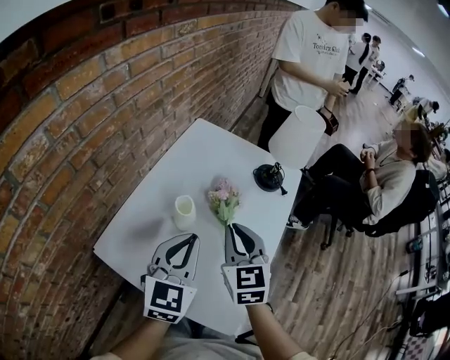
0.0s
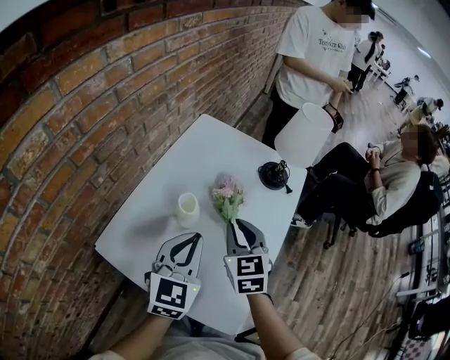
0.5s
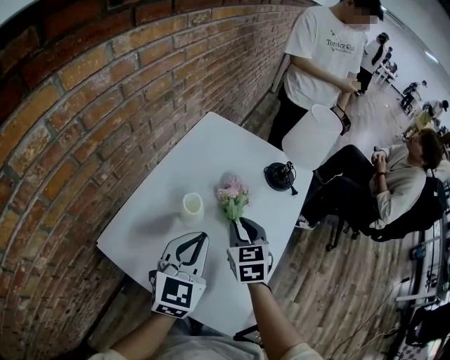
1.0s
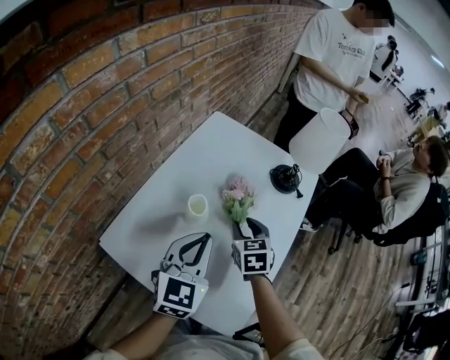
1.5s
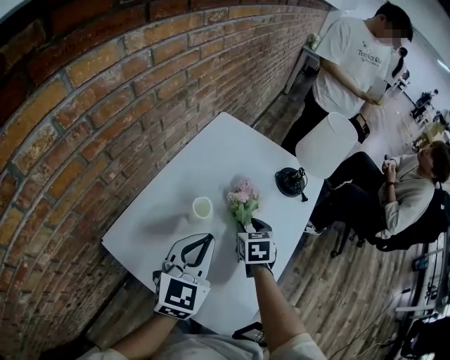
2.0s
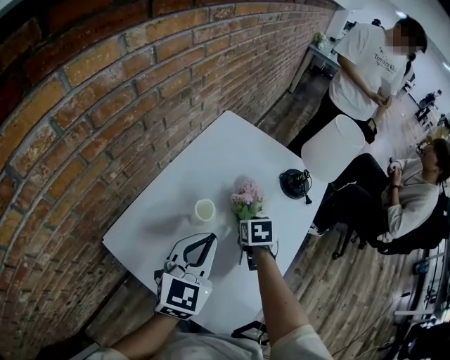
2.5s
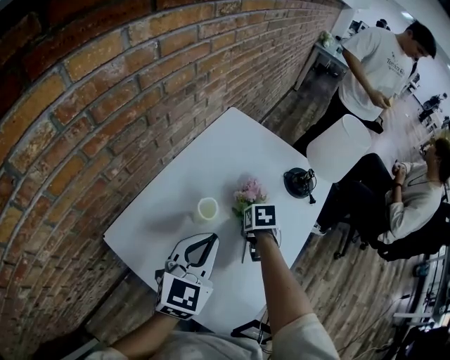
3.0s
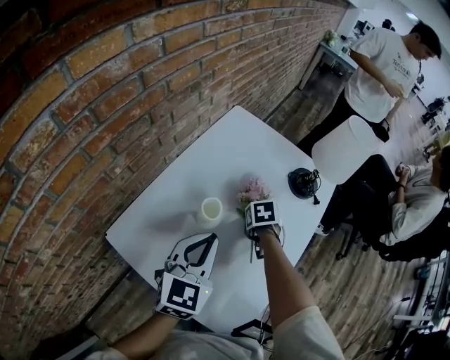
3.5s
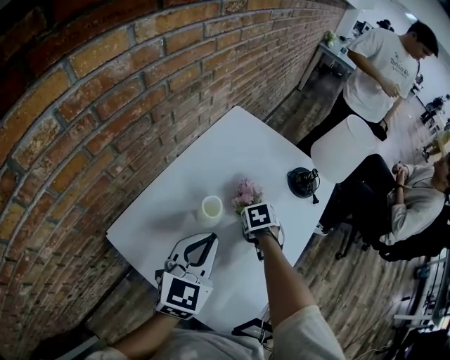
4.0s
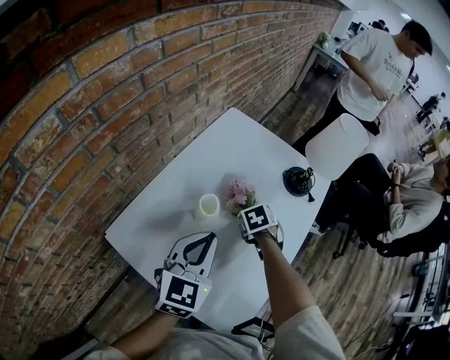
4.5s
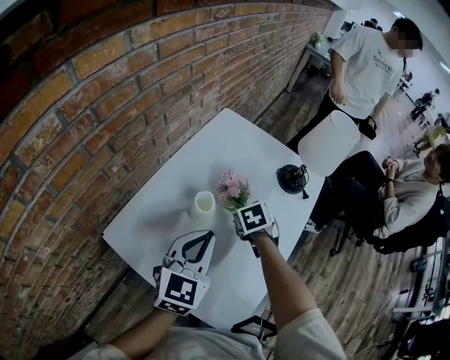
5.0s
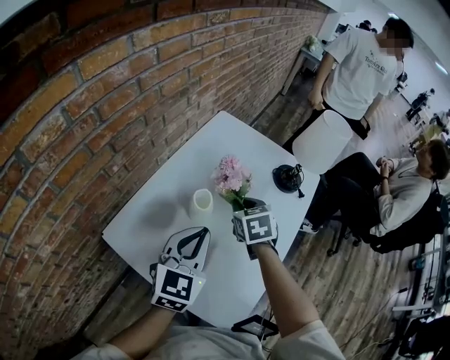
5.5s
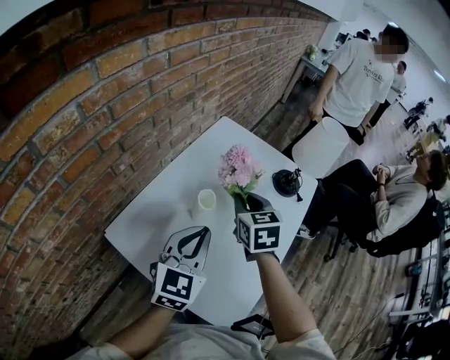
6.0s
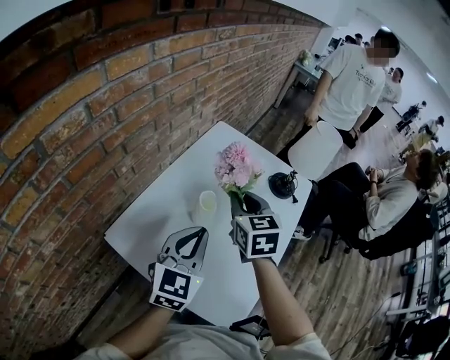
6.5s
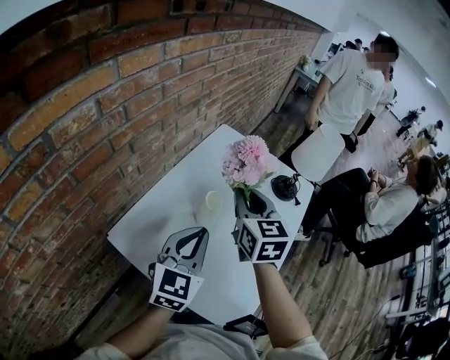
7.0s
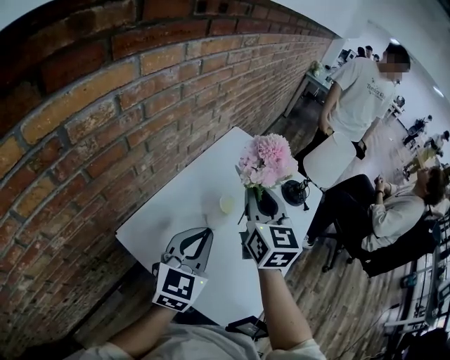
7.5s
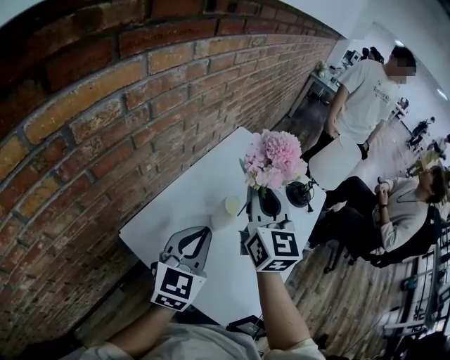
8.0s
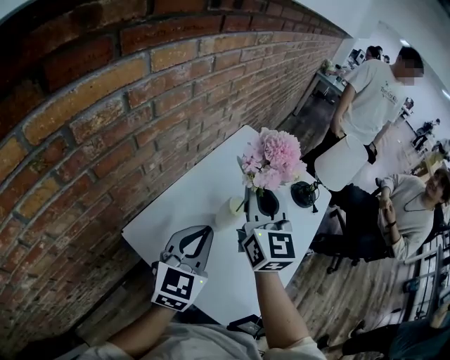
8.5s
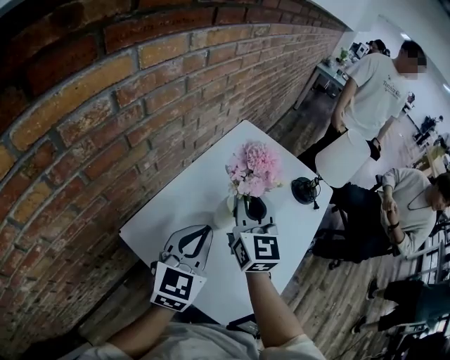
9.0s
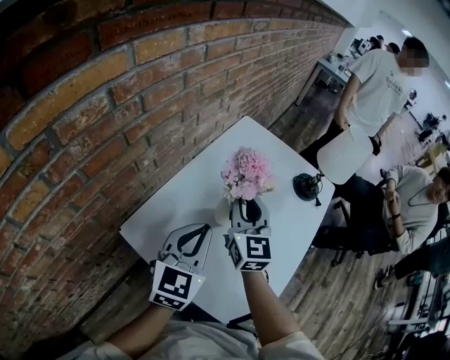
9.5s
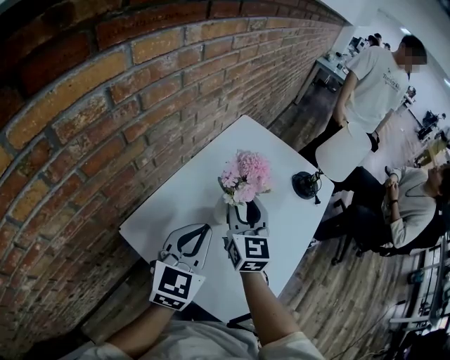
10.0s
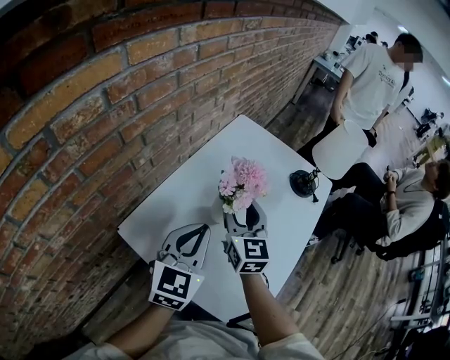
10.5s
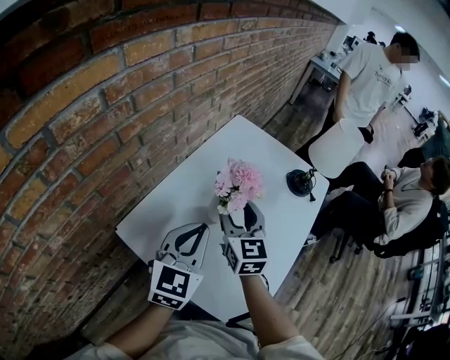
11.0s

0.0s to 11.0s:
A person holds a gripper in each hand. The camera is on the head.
0.0s to 2.0s: The right gripper heads downward and forward, covering roughly 20 cm, swivels roughly 30 degrees, and opens.
2.0s to 3.5s: The right gripper is displaced downward by some 5 cm, and swivels some 30 degrees.
3.5s to 5.5s: The right gripper shifts some 15 cm upward, rotates about 30 degrees, and closes.
5.5s to 7.5s: The right gripper is displaced upward by roughly 20 cm, and tilts its fingers roughly 40 degrees upward. The left gripper is displaced to the left by about 5 cm.
7.5s to 9.0s: The right gripper changes place by roughly 5 cm.
9.0s to 11.0s: The right gripper heads downward, covering approximately 10 cm, and opens.

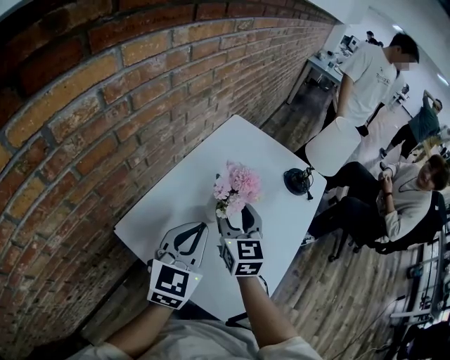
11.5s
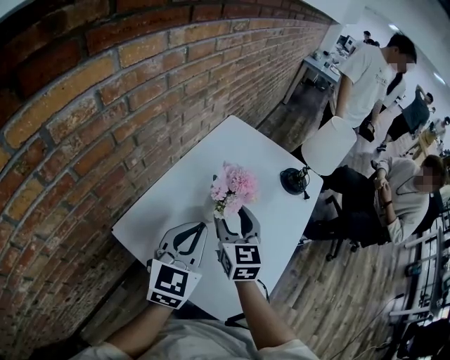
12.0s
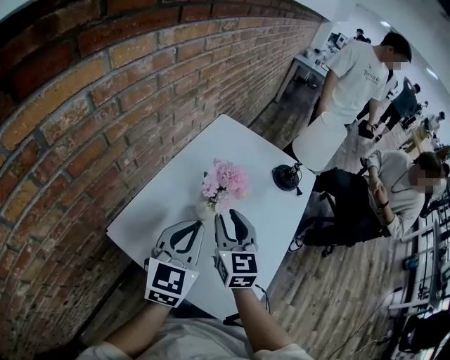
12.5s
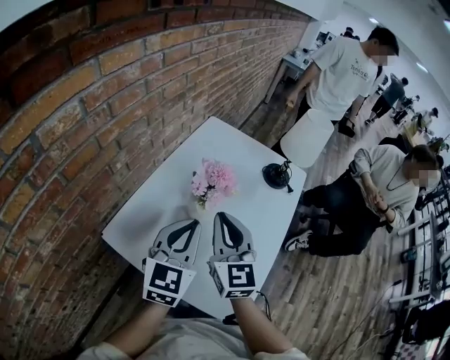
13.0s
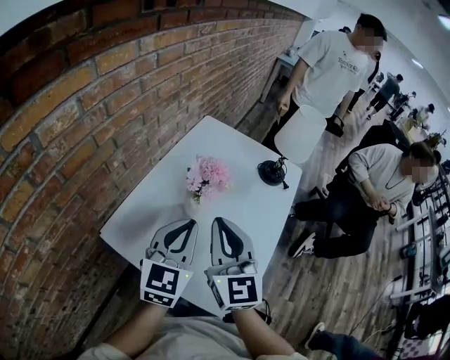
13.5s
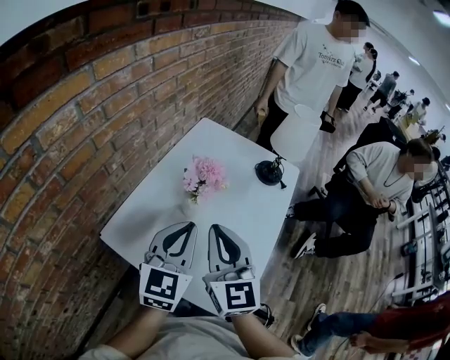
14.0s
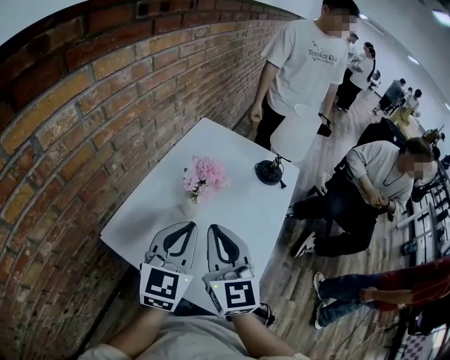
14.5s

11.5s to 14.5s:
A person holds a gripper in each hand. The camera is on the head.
11.5s to 13.0s: The right gripper travels backward and upward by some 10 cm, and closes its fingers.
13.0s to 14.5s: The right gripper is displaced backward by approximately 5 cm.

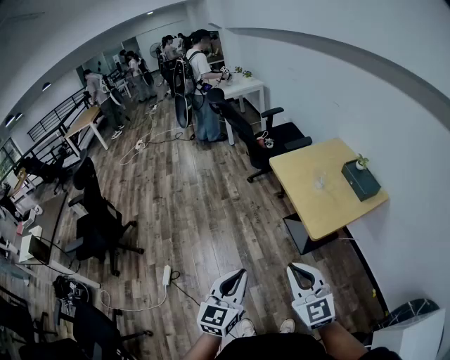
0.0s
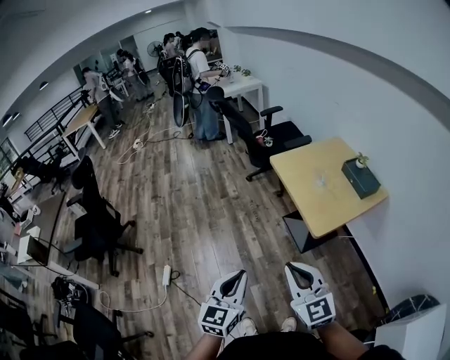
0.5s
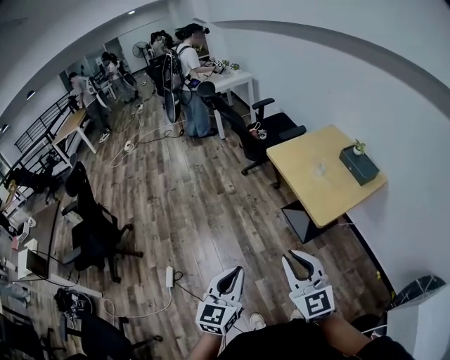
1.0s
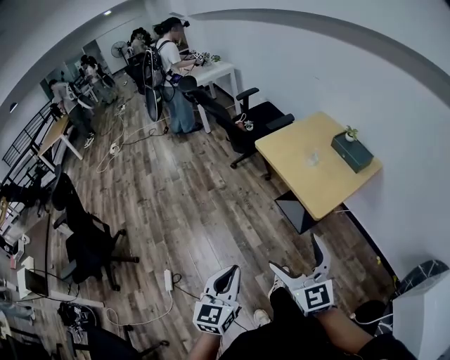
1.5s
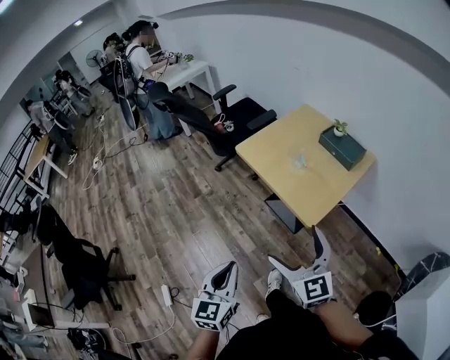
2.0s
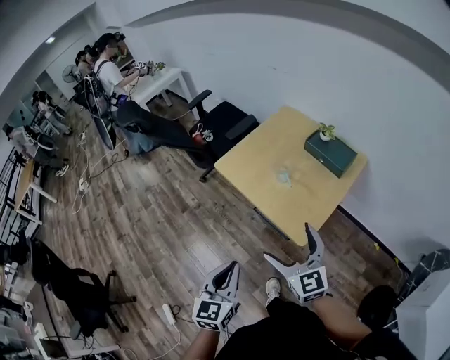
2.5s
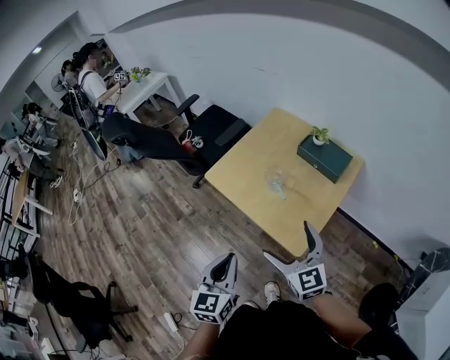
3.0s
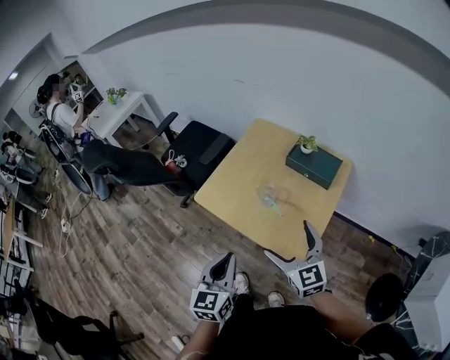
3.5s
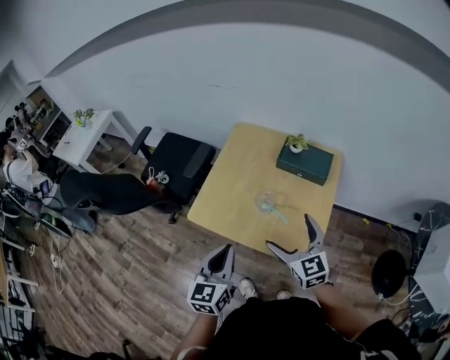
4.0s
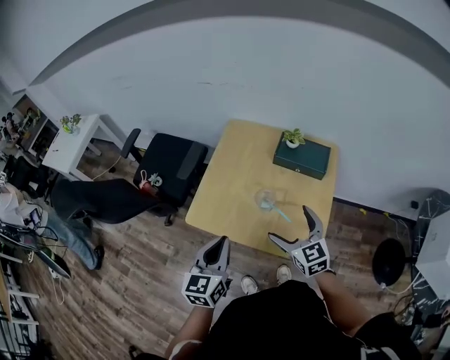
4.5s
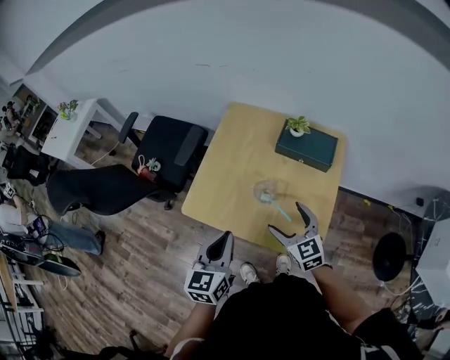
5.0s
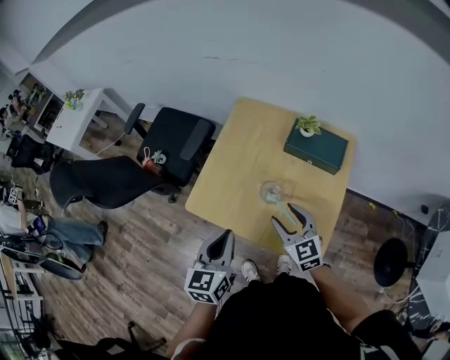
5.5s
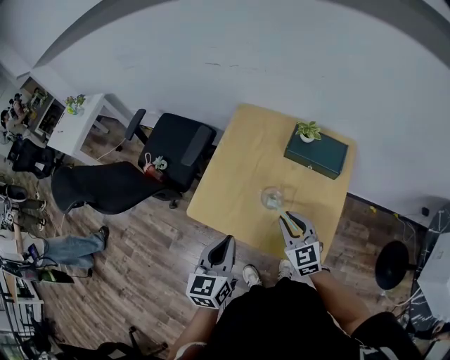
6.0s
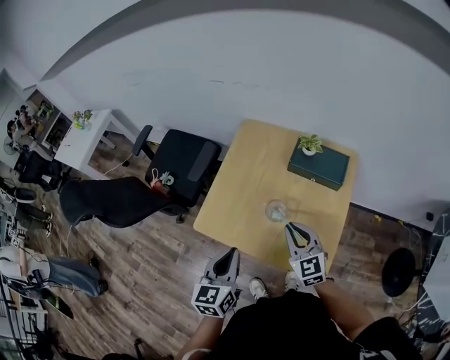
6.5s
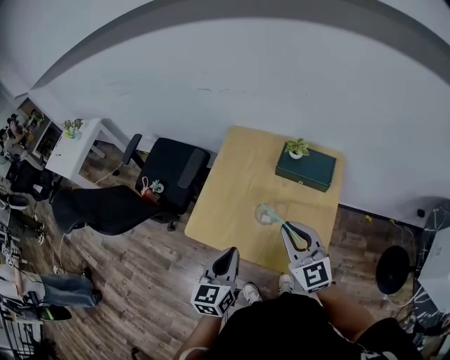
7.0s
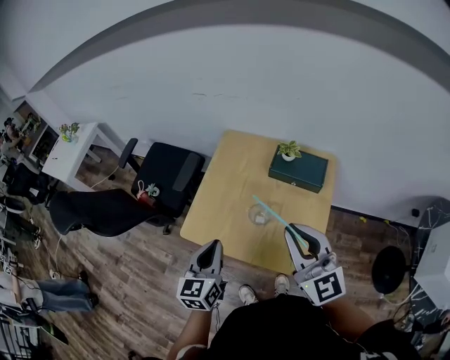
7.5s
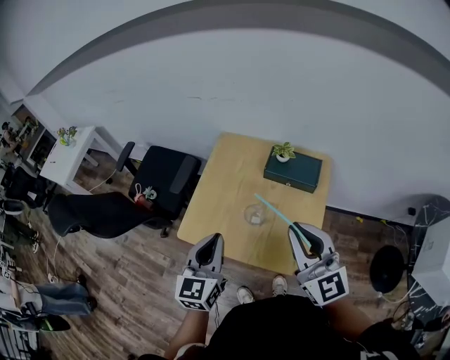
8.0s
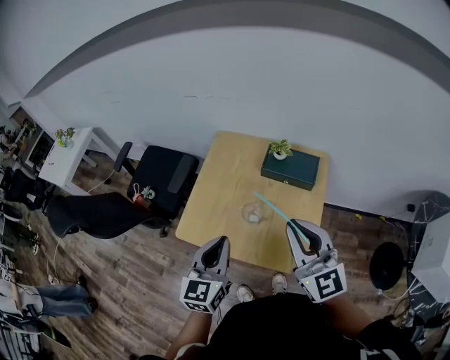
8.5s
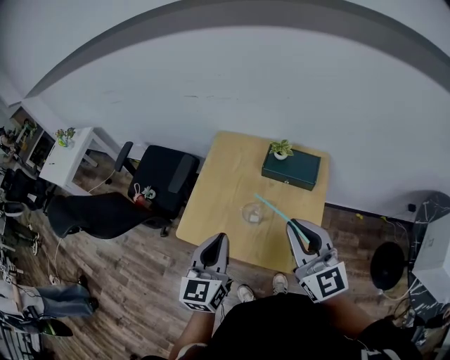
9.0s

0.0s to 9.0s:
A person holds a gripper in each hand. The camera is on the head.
0.0s to 2.0s: The left gripper moves forward and downward, some 15 cm. Meanwhile the right gripper travels forward by roughly 15 cm, rotates about 20 degrees, and opens.
2.0s to 4.5s: The left gripper changes place by some 50 cm, and swivels about 30 degrees, while the right gripper shifts by roughly 40 cm, and rotates approximately 30 degrees.
4.5s to 7.0s: The right gripper is displaced upward by some 5 cm, and closes its fingers; the left gripper moves approximately 5 cm.
7.0s to 9.0s: Both grippers travel together upward, approximately 10 cm.

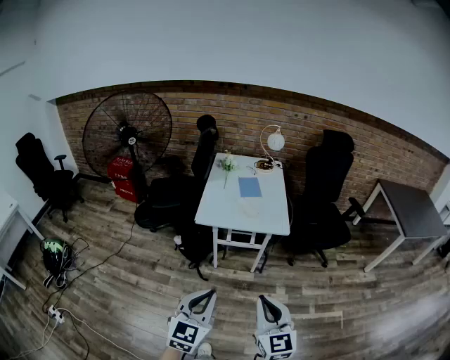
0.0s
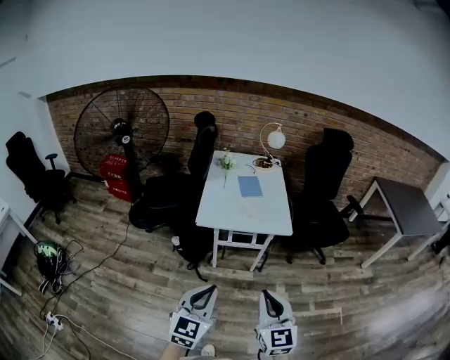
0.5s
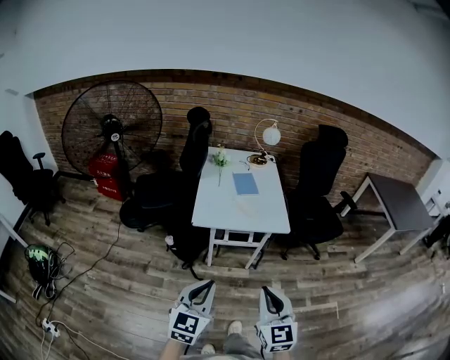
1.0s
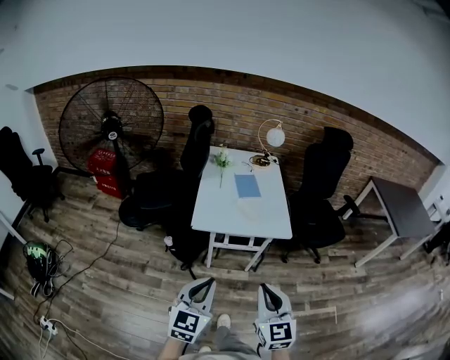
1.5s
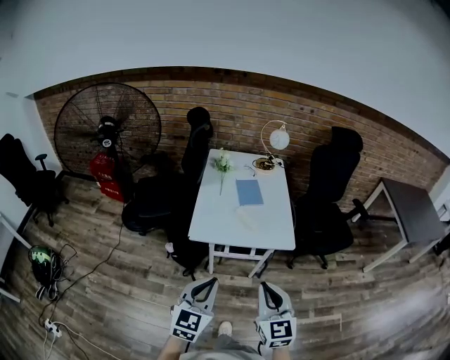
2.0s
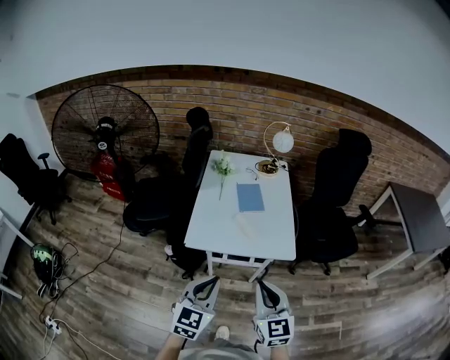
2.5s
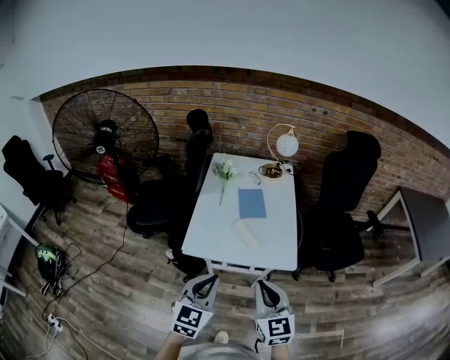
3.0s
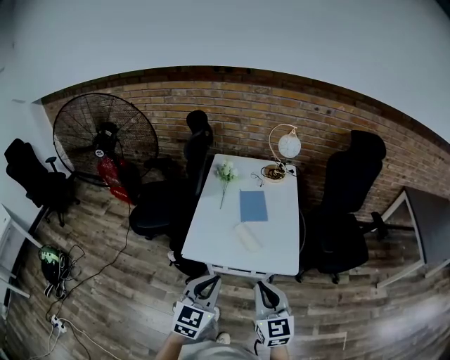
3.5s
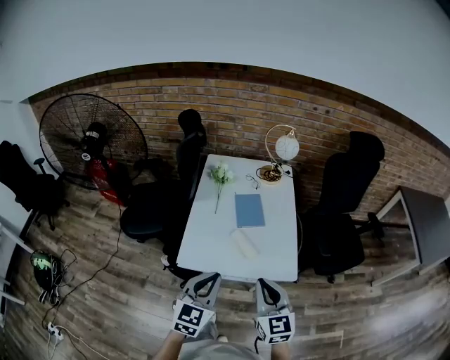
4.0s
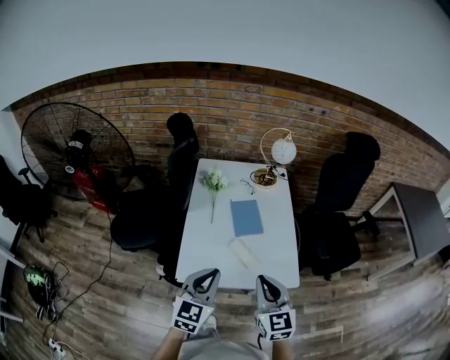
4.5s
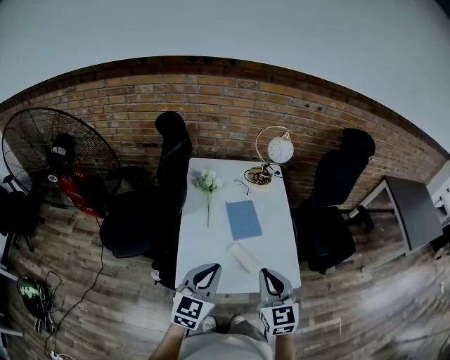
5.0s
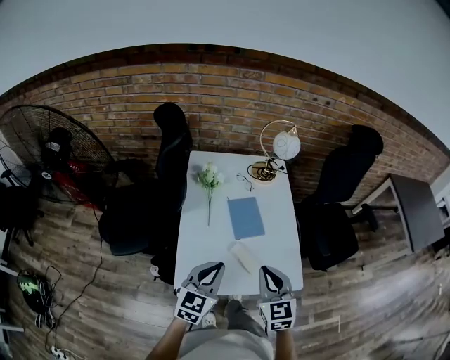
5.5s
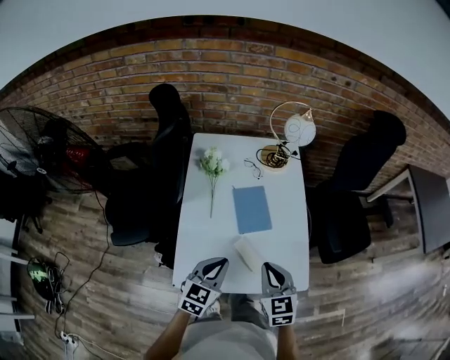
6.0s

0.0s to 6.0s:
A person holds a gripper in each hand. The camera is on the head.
0.0s to 2.0s: The grippers both shift forward by some 25 cm.
2.0s to 4.0s: The grippers both shift forward by some 20 cm.
4.0s to 6.0s: Both grippers travel together forward and downward, approximately 25 cm.
